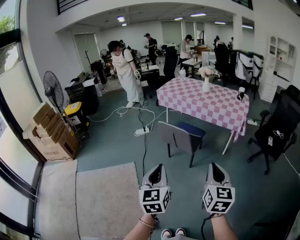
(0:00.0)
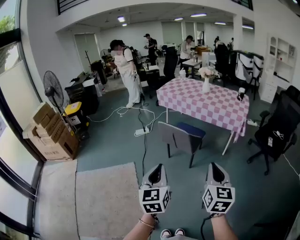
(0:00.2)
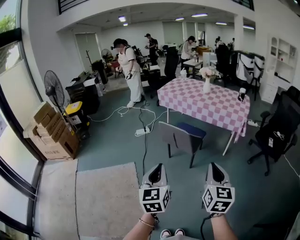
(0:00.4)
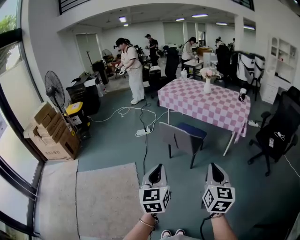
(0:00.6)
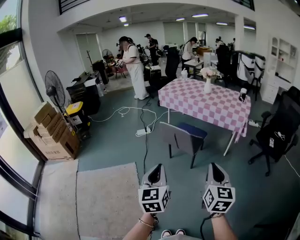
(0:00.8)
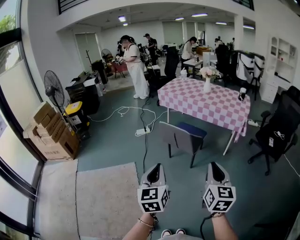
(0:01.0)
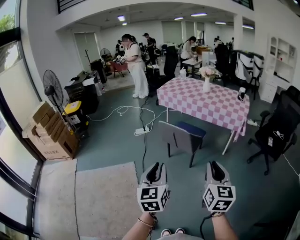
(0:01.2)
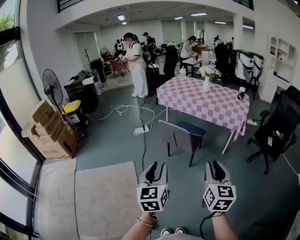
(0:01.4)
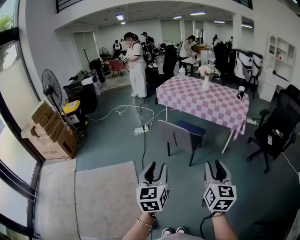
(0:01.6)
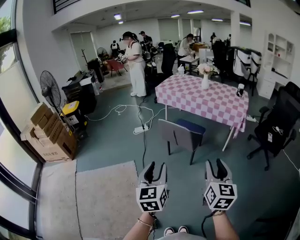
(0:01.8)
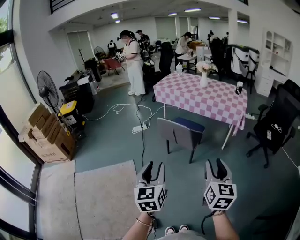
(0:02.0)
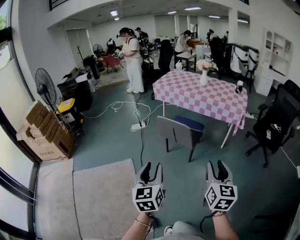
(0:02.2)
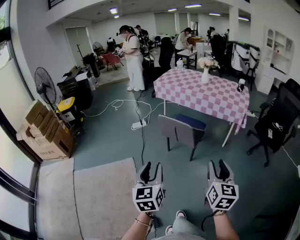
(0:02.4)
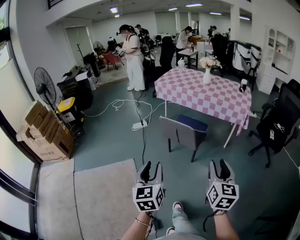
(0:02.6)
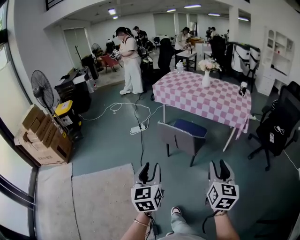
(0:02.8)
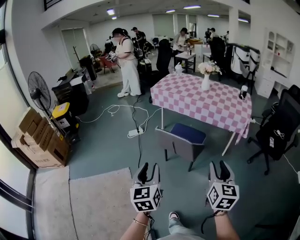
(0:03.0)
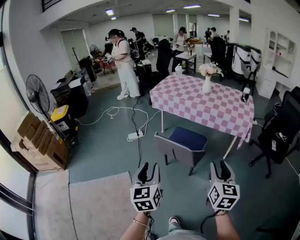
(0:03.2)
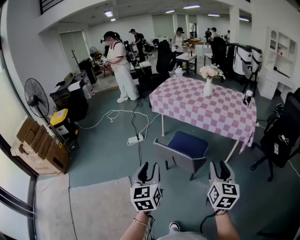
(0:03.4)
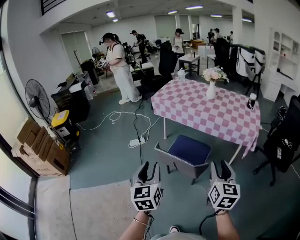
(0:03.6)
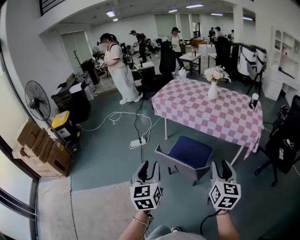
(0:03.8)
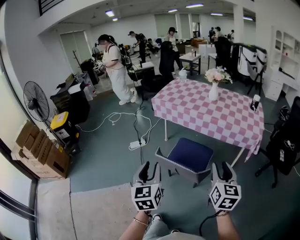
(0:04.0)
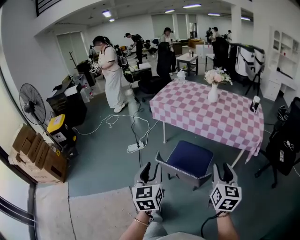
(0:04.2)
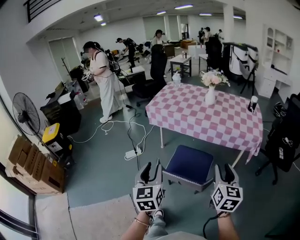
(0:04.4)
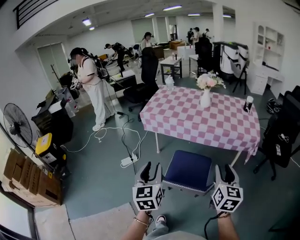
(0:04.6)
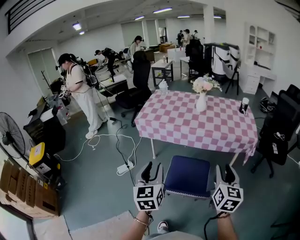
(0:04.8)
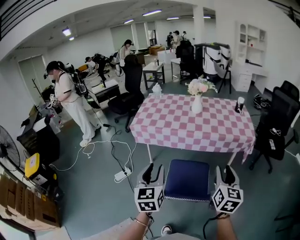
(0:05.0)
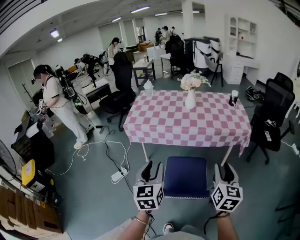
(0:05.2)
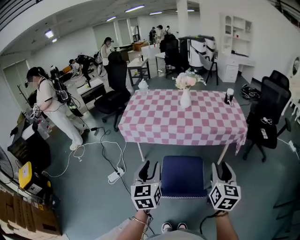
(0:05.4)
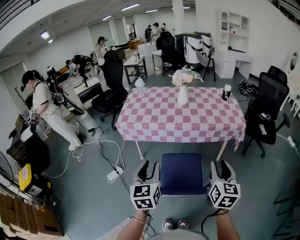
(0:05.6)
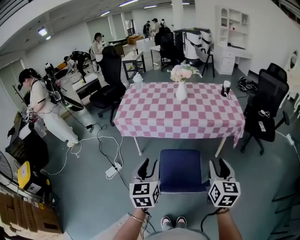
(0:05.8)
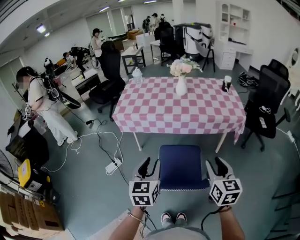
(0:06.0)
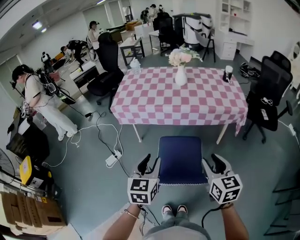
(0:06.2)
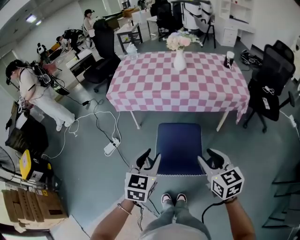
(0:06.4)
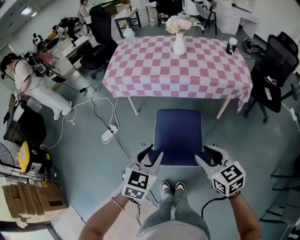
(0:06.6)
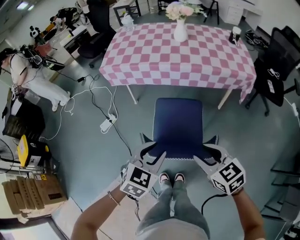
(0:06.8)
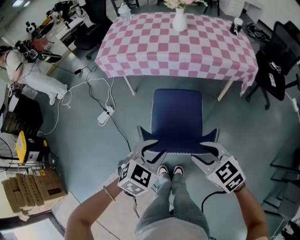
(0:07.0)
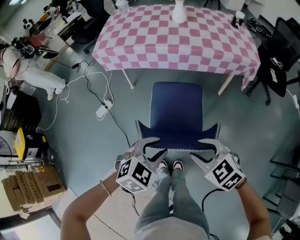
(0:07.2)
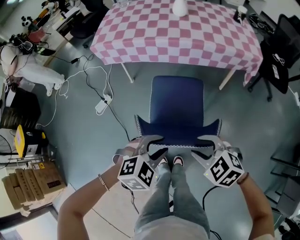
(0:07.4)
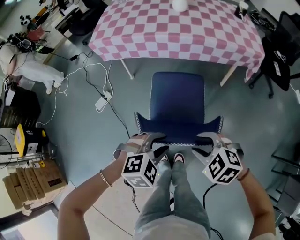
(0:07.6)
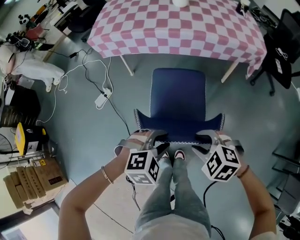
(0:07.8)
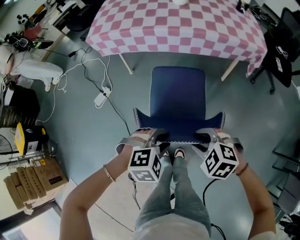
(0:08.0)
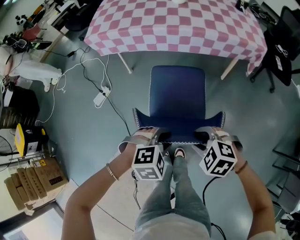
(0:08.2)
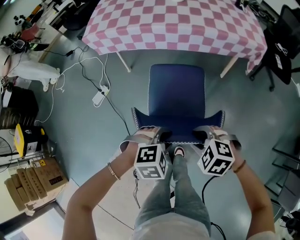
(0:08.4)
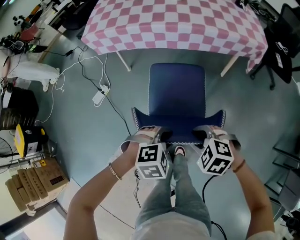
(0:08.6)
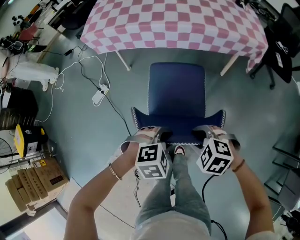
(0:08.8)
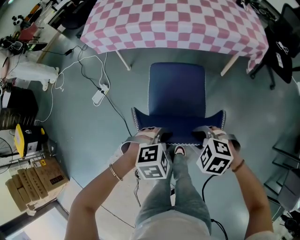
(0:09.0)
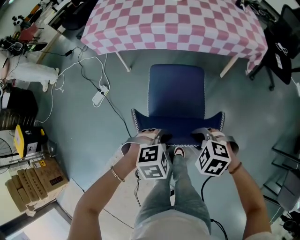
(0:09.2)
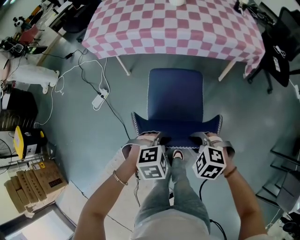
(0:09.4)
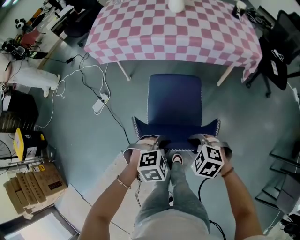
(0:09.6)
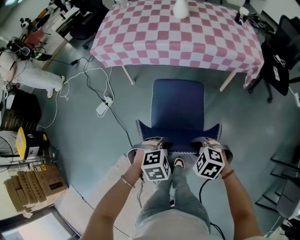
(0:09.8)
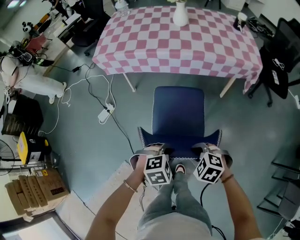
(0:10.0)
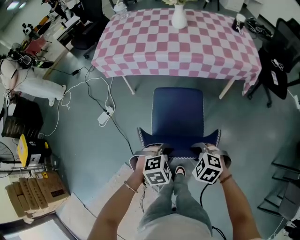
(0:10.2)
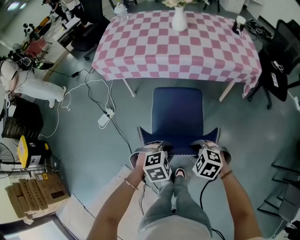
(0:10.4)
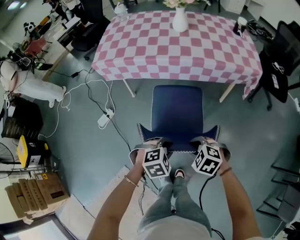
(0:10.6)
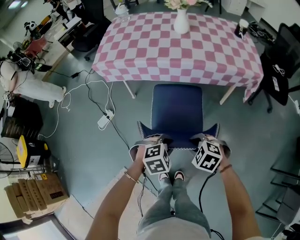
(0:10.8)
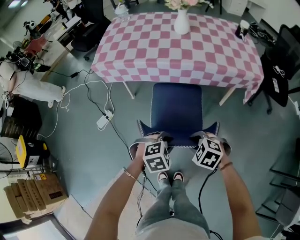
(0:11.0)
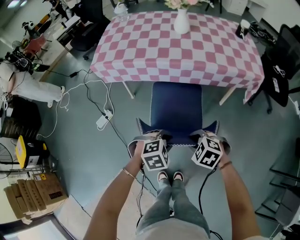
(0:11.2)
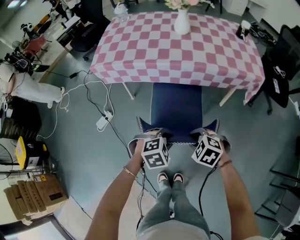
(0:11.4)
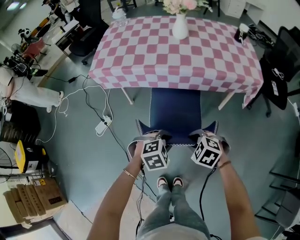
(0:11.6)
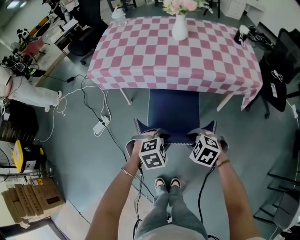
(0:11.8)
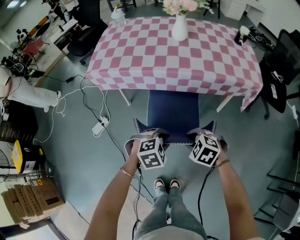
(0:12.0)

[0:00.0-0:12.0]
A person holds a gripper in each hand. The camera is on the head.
0:00.0 to 0:01.6: The right gripper opens its fingers. The left gripper opens up.
0:01.6 to 0:03.0: The grippers both shift forward by some 15 cm.
0:03.0 to 0:04.4: Both grippers move forward, approximately 30 cm.
0:04.4 to 0:06.0: The left gripper moves forward, about 15 cm, and changes its angle by about 30 degrees; the right gripper goes approximately 10 cm to the left and forward.
0:06.0 to 0:07.6: The left gripper goes about 25 cm downward, backward and to the right, and tips its fingers downward by some 40 degrees, while the right gripper travels downward by roughly 20 cm, and points its fingers about 40 degrees further downward.
0:07.6 to 0:09.0: Both grippers travel together downward, about 5 cm.
0:09.0 to 0:10.4: The grippers make only small movements.
0:10.4 to 0:12.0: Both grippers travel together forward, about 15 cm.

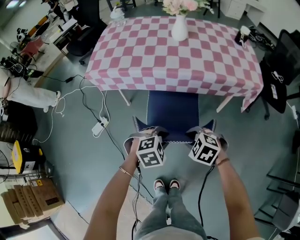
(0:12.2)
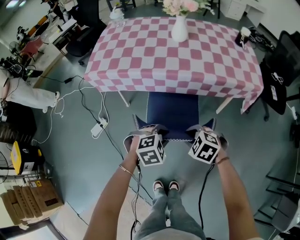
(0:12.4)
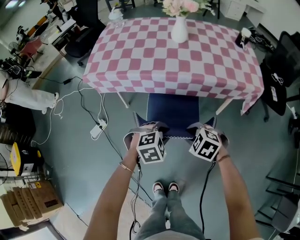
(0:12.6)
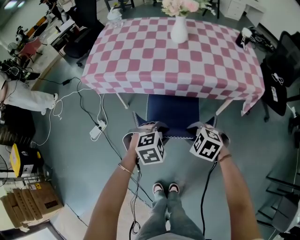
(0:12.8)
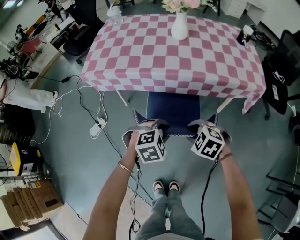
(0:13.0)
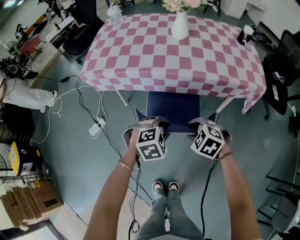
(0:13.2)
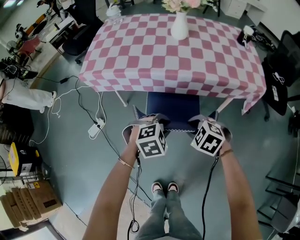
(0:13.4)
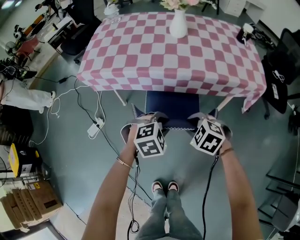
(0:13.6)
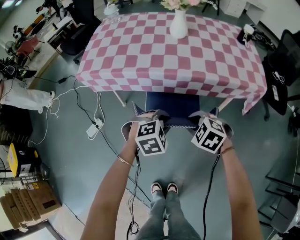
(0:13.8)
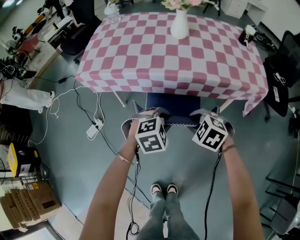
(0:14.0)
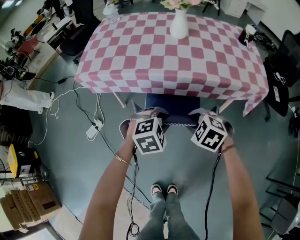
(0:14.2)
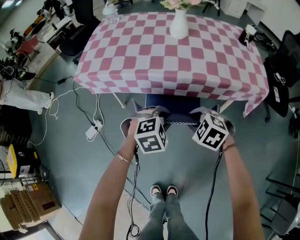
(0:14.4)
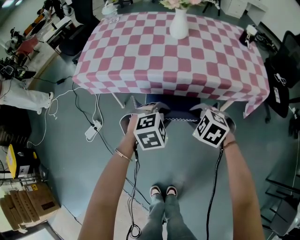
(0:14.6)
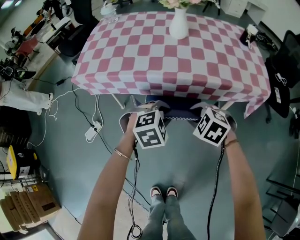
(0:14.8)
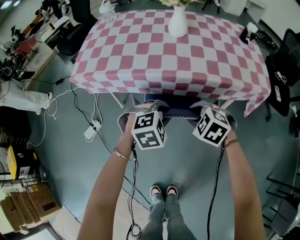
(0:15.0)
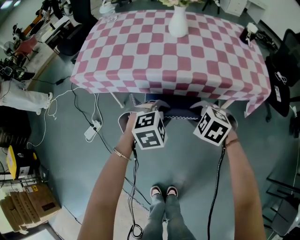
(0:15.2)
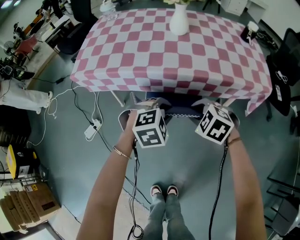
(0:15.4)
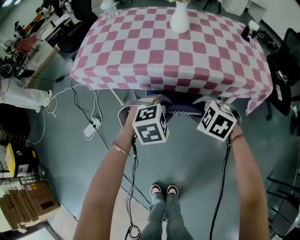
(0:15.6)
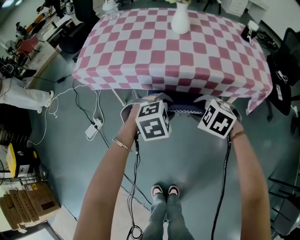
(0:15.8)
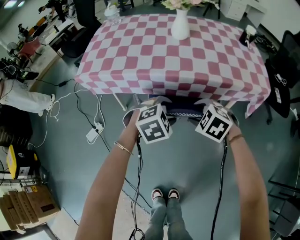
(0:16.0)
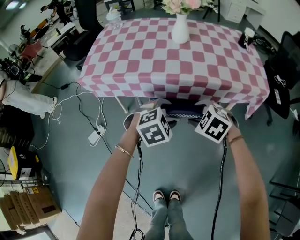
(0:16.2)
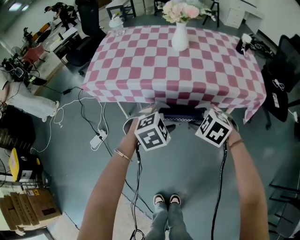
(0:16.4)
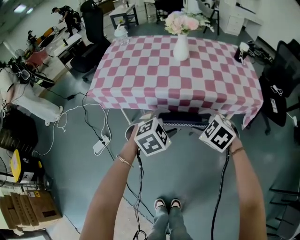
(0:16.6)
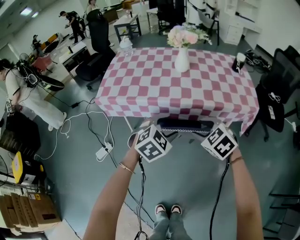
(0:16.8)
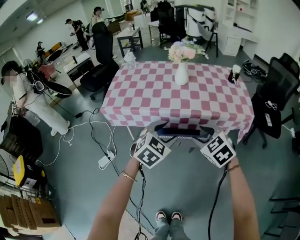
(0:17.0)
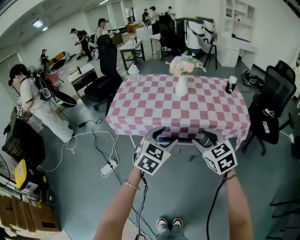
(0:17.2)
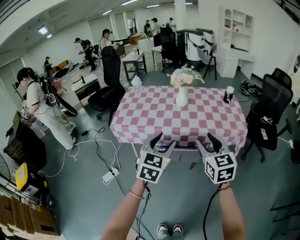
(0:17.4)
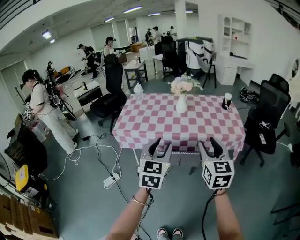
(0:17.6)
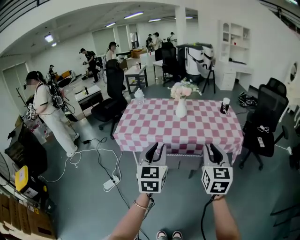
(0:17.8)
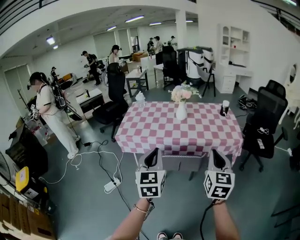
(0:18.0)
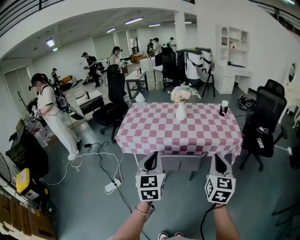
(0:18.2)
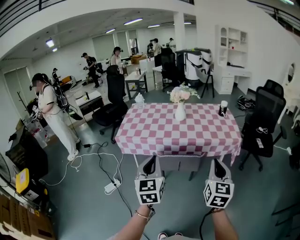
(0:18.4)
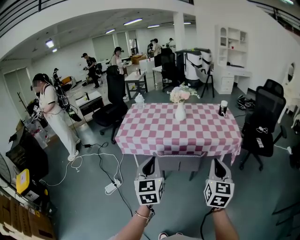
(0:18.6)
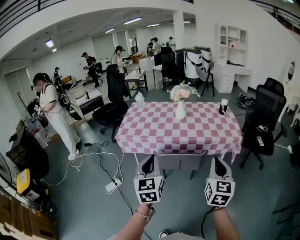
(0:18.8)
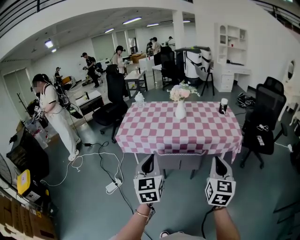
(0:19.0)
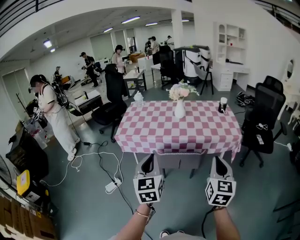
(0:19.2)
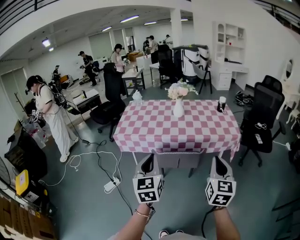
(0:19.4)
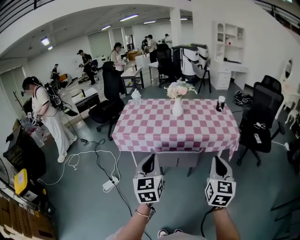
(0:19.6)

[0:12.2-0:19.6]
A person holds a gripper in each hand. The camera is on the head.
0:12.2 to 0:13.6: The two grippers go approximately 10 cm forward.
0:13.6 to 0:15.2: The grippers both shift forward by about 5 cm.
0:15.2 to 0:16.6: The two grippers go some 10 cm upward. The right gripper opens. The left gripper opens.
0:16.6 to 0:18.2: The two grippers go roughly 35 cm upward and backward. The left gripper points its fingers roughly 40 degrees further upward, and closes up. The right gripper points its fingers about 50 degrees further upward, and closes its fingers.
0:18.2 to 0:19.6: The grippers stay close to where they were, moving slightly.

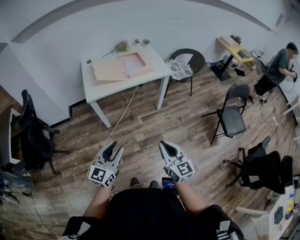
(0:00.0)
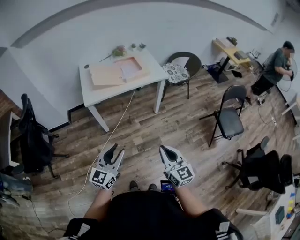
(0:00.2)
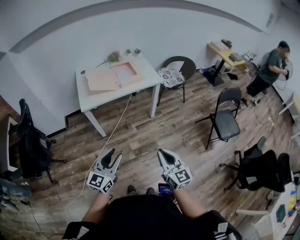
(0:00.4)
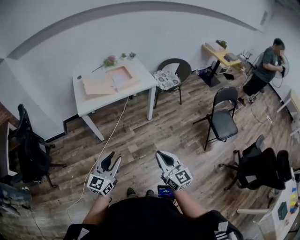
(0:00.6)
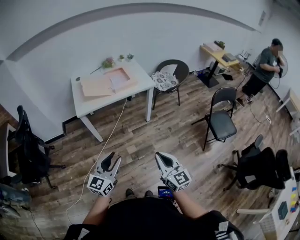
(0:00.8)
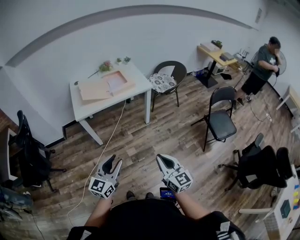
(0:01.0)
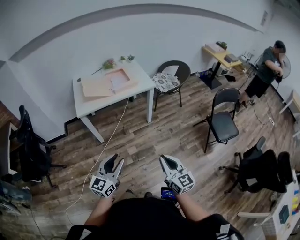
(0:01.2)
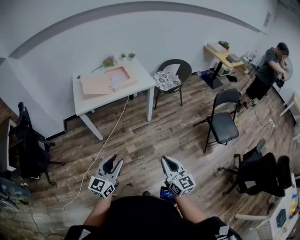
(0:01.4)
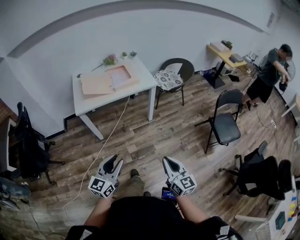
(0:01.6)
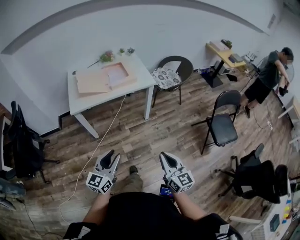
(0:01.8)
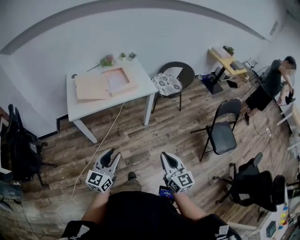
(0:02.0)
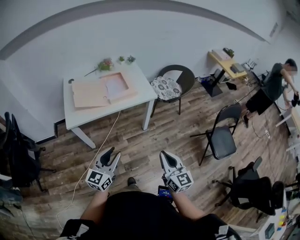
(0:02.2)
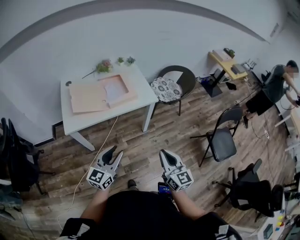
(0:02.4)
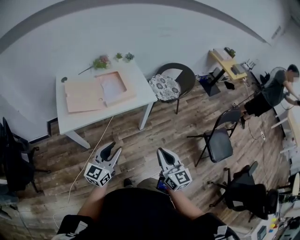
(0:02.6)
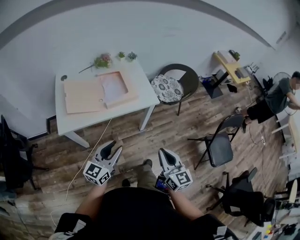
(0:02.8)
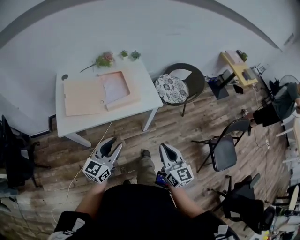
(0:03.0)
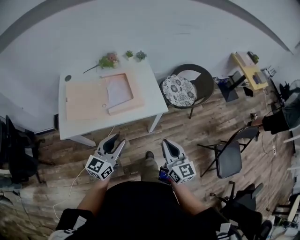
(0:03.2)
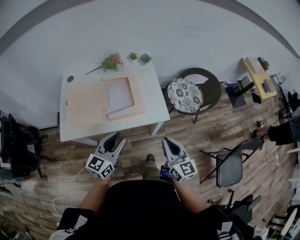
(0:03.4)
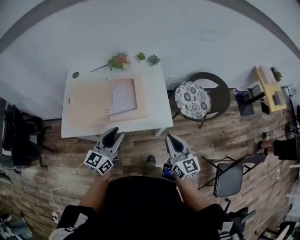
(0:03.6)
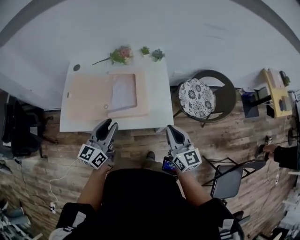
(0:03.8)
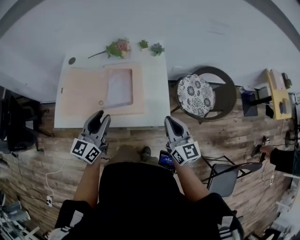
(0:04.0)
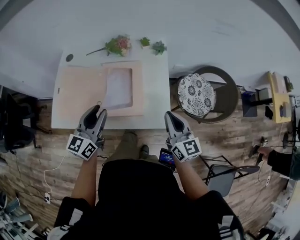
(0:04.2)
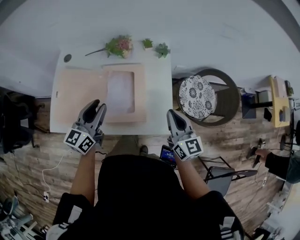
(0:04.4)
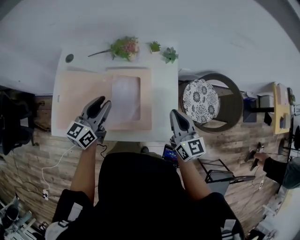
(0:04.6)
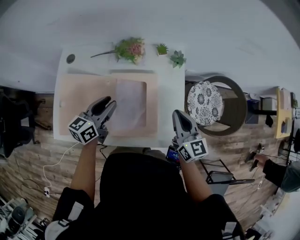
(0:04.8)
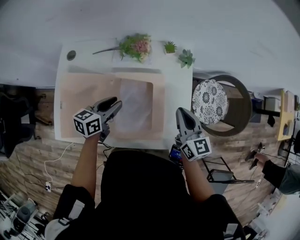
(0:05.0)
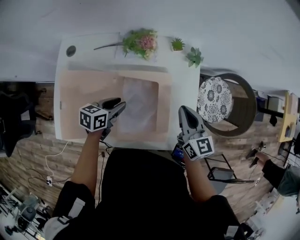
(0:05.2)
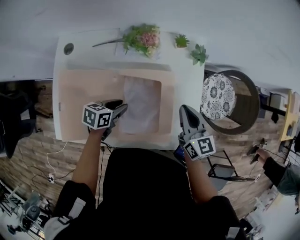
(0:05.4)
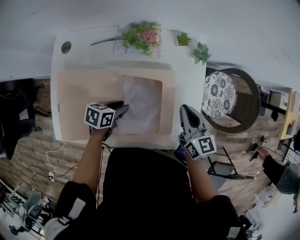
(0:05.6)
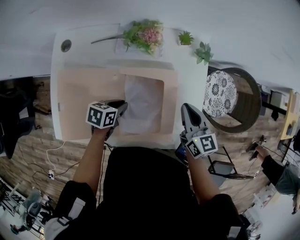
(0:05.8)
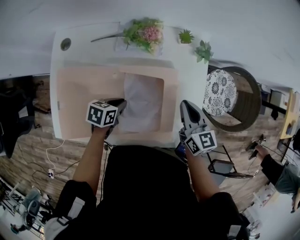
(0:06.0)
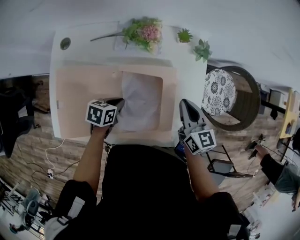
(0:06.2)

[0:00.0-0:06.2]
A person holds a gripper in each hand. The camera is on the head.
0:00.0 to 0:01.6: Both grippers move to the right, about 10 cm.
0:01.6 to 0:03.2: The pair of grippers is taken forward, some 50 cm.
0:03.2 to 0:04.6: The two grippers go roughly 35 cm forward. The left gripper turns by some 20 degrees.
0:04.6 to 0:06.2: The right gripper moves forward, downward and to the left, some 15 cm; the left gripper heads downward, covering some 25 cm, angles its fingers downward, by some 50 degrees, and closes its fingers.
